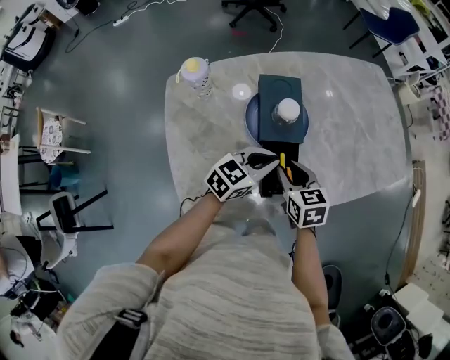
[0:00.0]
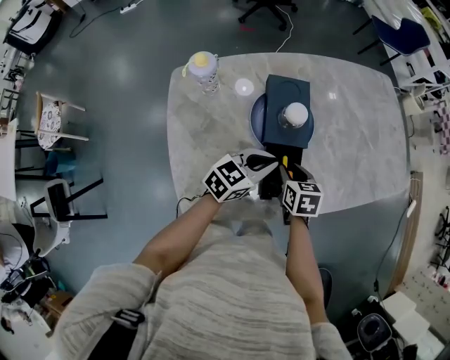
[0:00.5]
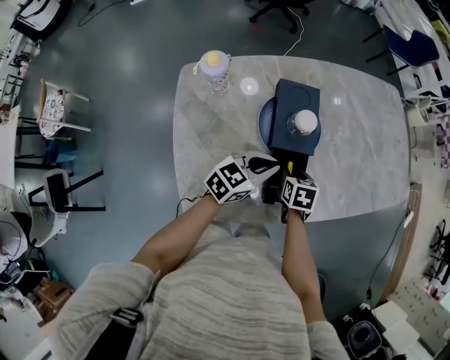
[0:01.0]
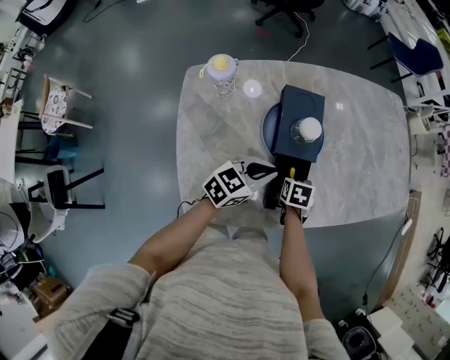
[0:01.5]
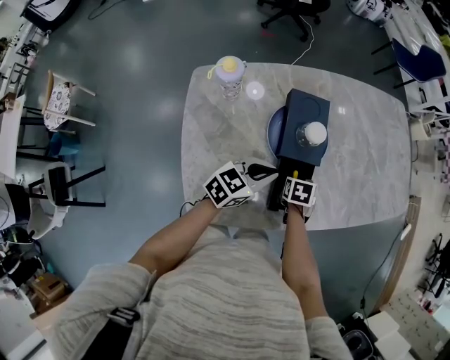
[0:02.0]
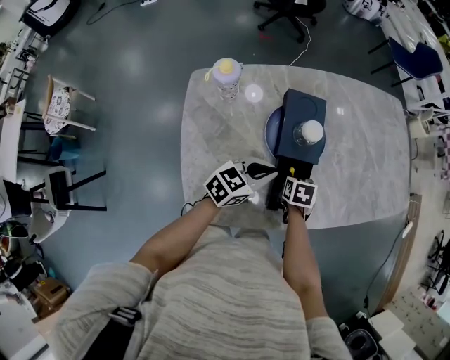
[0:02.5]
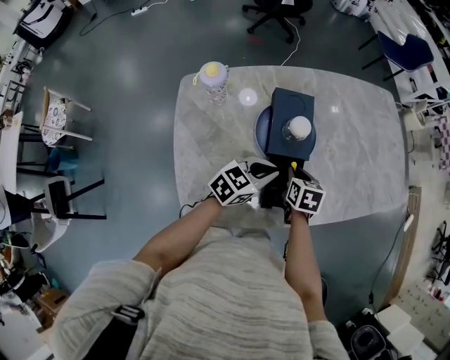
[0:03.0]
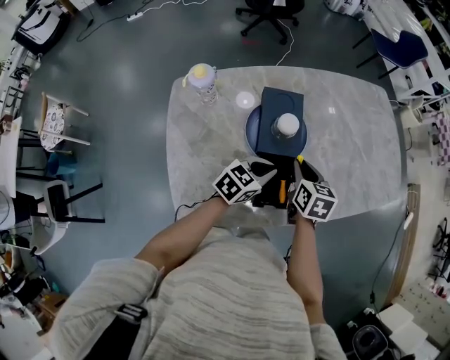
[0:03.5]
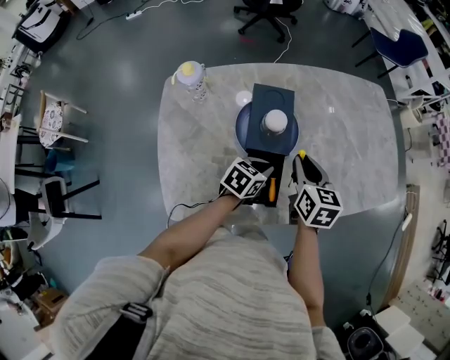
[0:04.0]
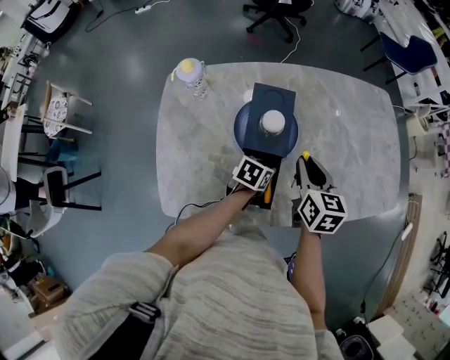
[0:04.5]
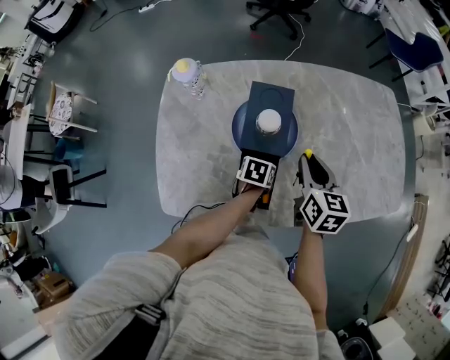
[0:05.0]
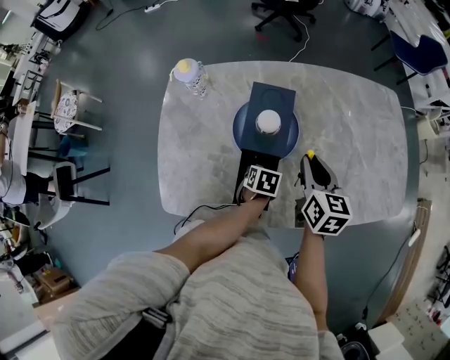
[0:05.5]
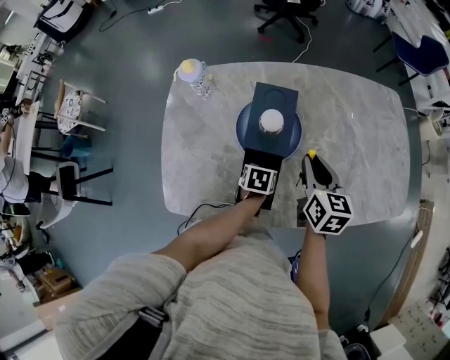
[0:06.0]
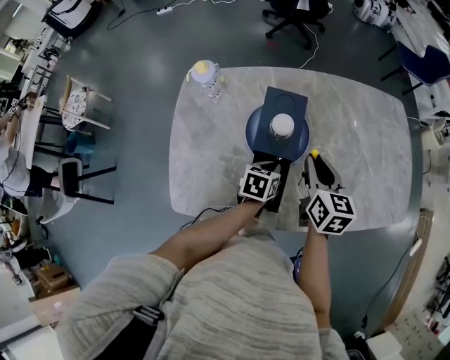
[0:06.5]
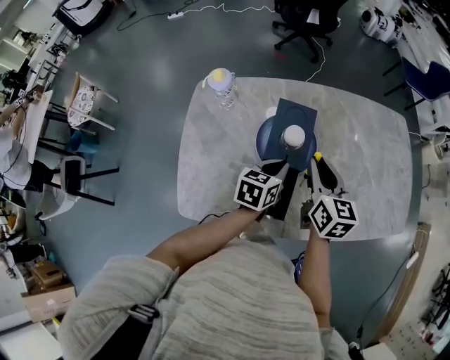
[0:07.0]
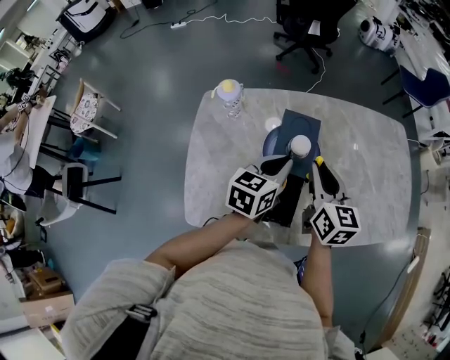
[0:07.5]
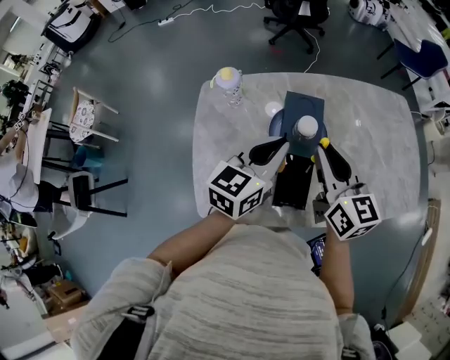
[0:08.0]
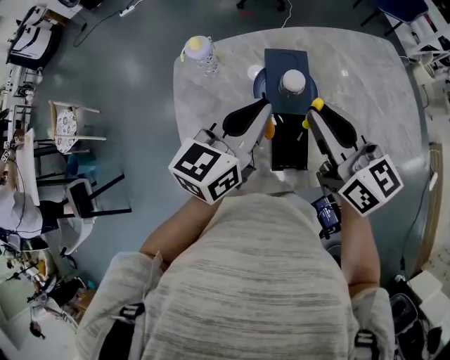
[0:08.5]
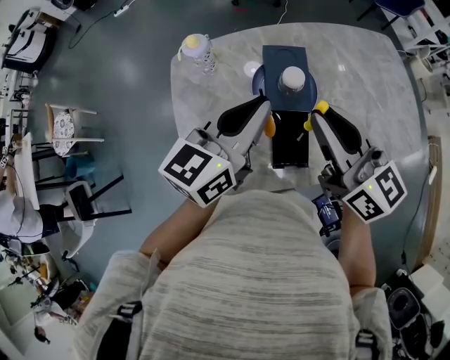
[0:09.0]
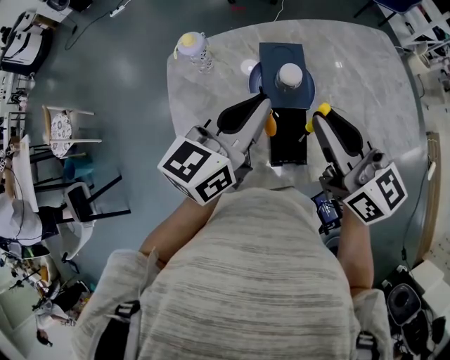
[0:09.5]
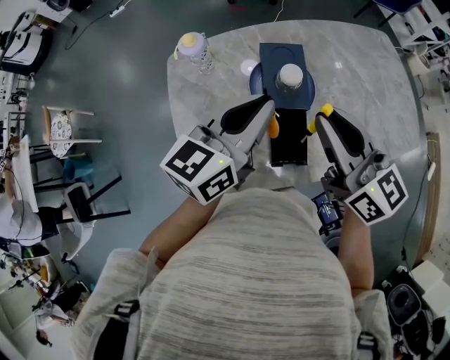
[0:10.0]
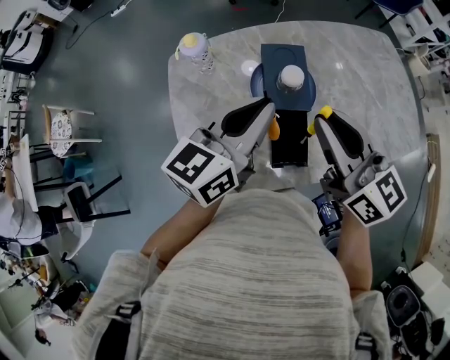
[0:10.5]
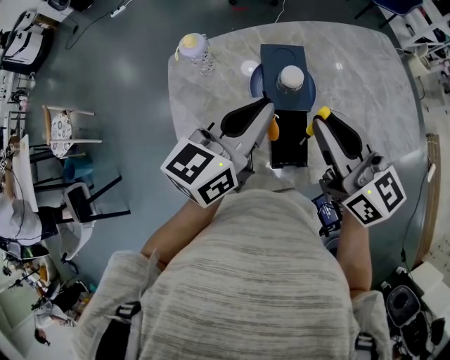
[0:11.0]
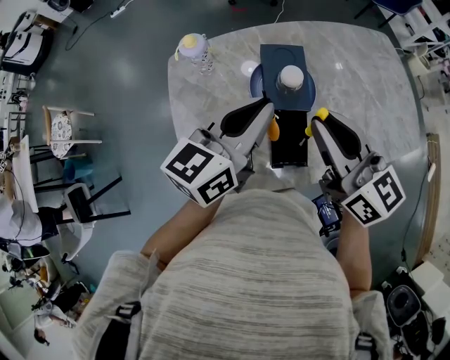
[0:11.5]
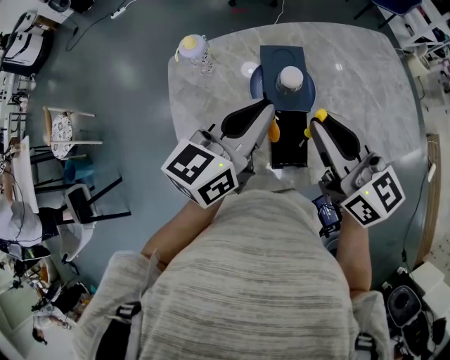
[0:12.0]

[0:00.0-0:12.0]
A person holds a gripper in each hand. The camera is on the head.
0:00.0 to 0:02.0: The right gripper heads downward, covering roughly 15 cm, and turns by about 30 degrees. Meanwhile the left gripper heads to the left, covering roughly 5 cm.
0:02.0 to 0:04.0: The right gripper travels upward by some 20 cm, and angles its fingers upward, by about 40 degrees. Meanwhile the left gripper travels to the right, downward and forward by some 10 cm, and changes its angle by about 20 degrees.
0:04.0 to 0:06.0: The left gripper moves downward, roughly 10 cm, turns by roughly 40 degrees, and opens, then closes again.
0:06.0 to 0:08.0: The right gripper shifts roughly 20 cm upward and to the left, and turns by some 20 degrees, while the left gripper heads upward, covering about 30 cm, and points its fingers some 50 degrees further upward.
0:08.0 to 0:10.0: The right gripper changes place by about 5 cm.
0:10.0 to 0:12.0: The two grippers keep their place.

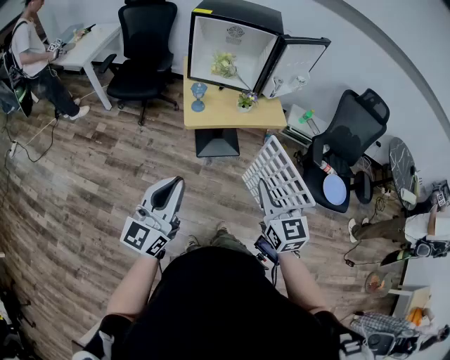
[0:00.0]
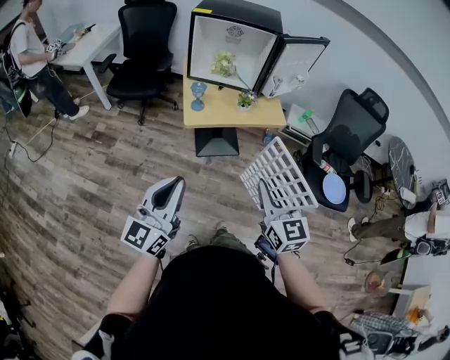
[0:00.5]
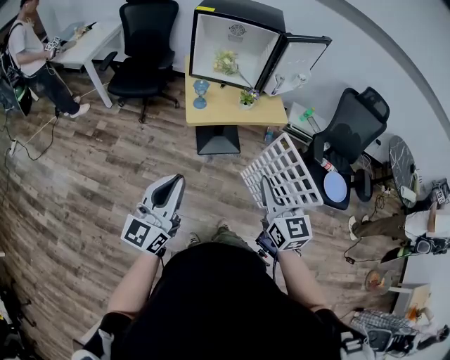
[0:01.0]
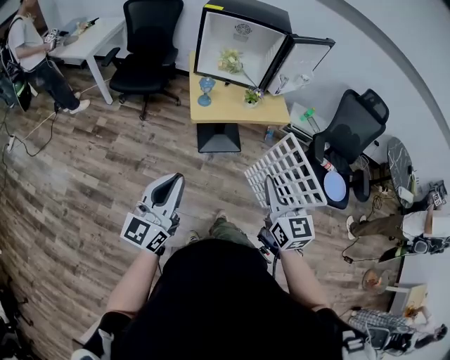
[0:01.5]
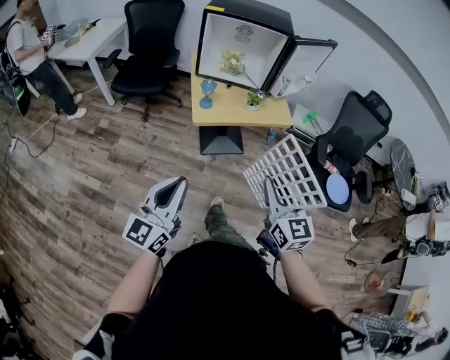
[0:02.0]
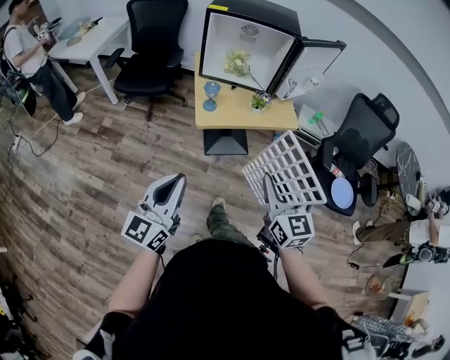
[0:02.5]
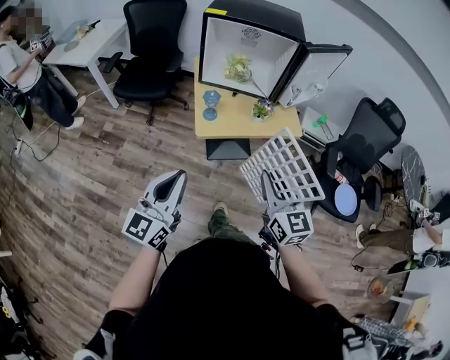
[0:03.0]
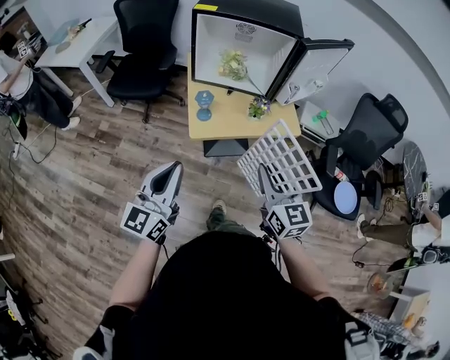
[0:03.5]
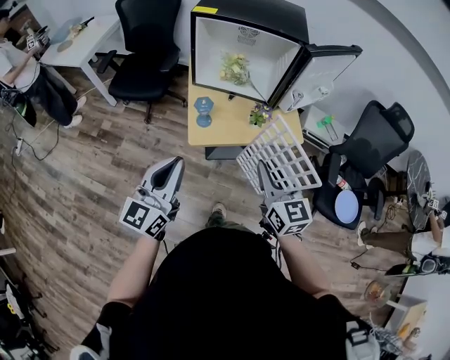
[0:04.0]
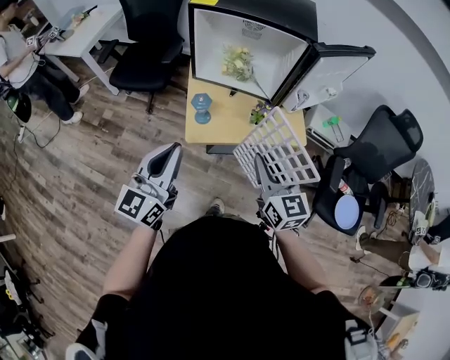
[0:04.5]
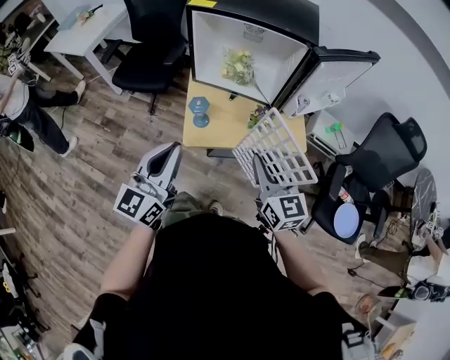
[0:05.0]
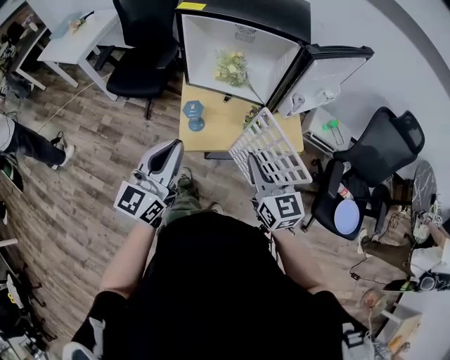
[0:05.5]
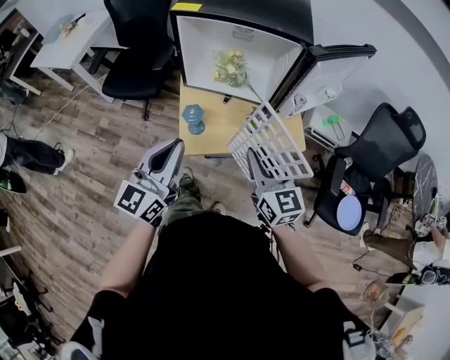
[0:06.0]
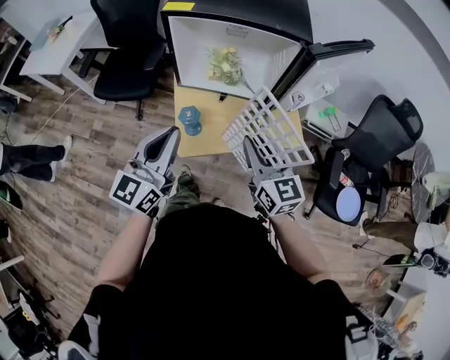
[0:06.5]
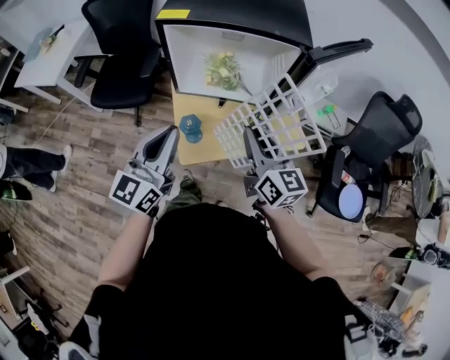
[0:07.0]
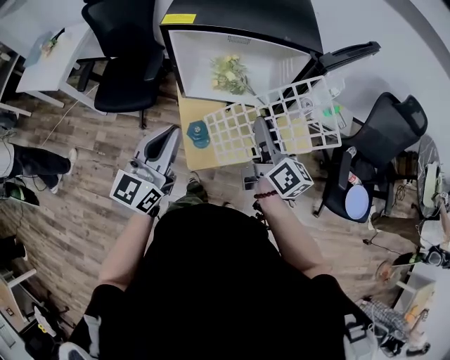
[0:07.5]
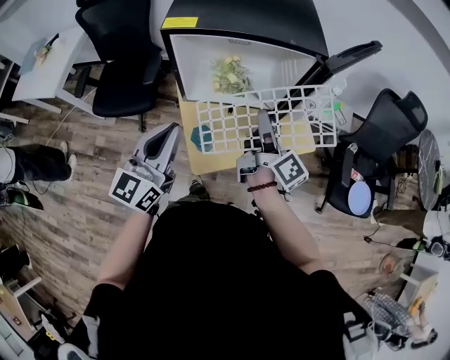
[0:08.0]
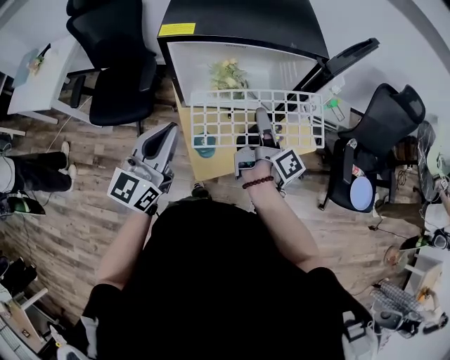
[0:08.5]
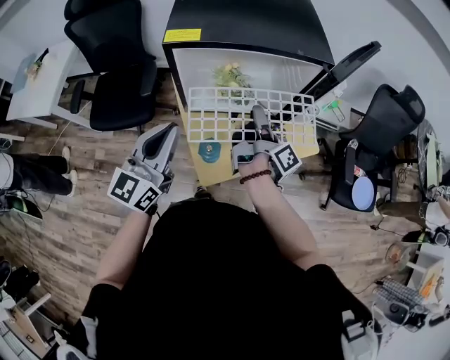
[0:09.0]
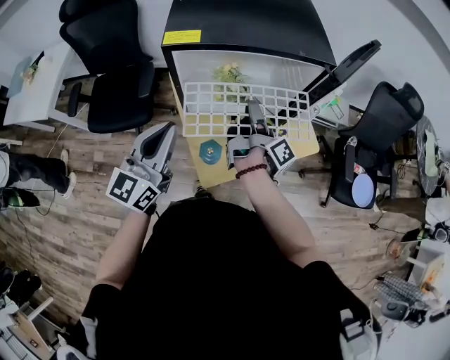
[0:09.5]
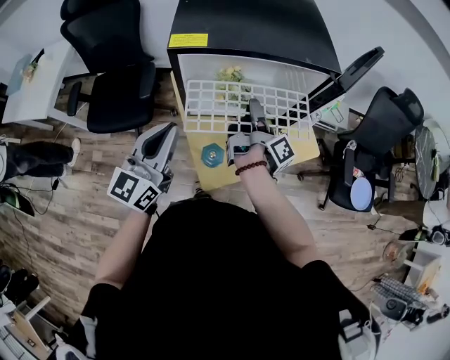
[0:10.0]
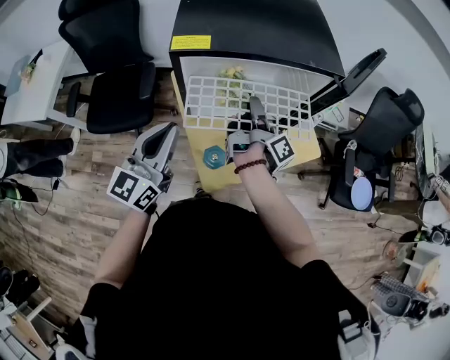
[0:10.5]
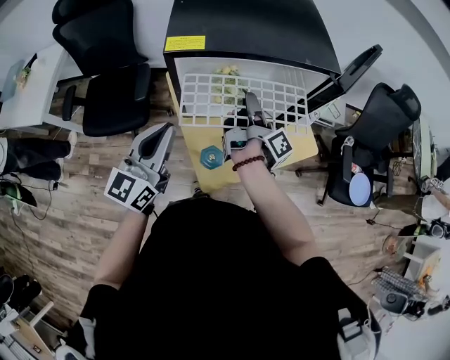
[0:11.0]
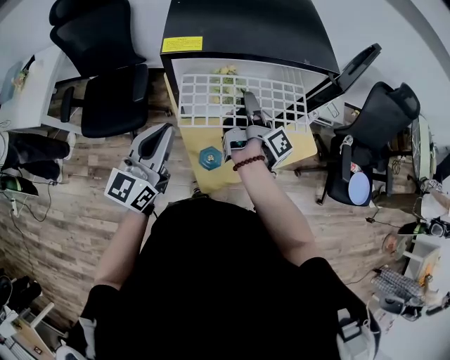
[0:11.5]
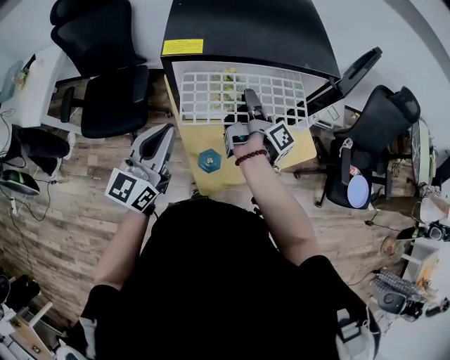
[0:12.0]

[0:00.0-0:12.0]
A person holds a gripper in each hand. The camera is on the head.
0:00.0 to 0:02.0: The grippers move only a little.
0:02.0 to 0:04.0: The two grippers go some 20 cm forward.
0:04.0 to 0:06.0: The two grippers go some 10 cm forward.
0:06.0 to 0:08.0: The left gripper shifts about 15 cm forward and to the left; the right gripper shifts roughly 15 cm forward, and twists approximately 60 degrees clockwise, seen from behind.
0:08.0 to 0:10.0: The left gripper is displaced to the left and forward by some 10 cm, while the right gripper travels forward, to the left and downward by about 10 cm, and rotates about 30 degrees.
0:10.0 to 0:12.0: The grippers make only small movements.

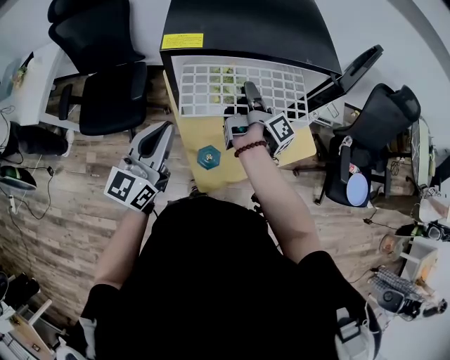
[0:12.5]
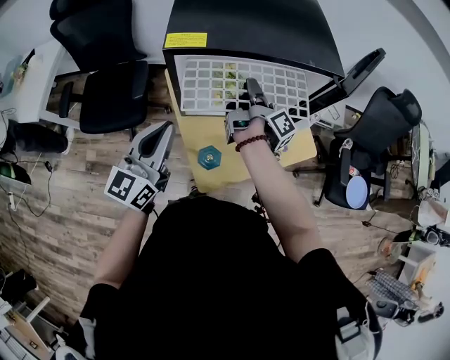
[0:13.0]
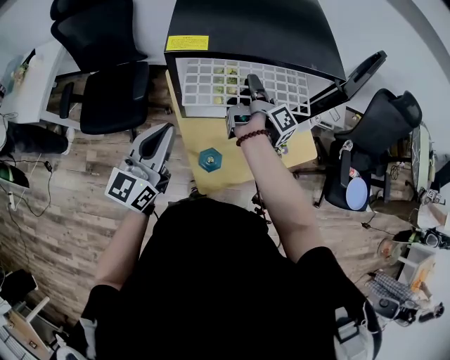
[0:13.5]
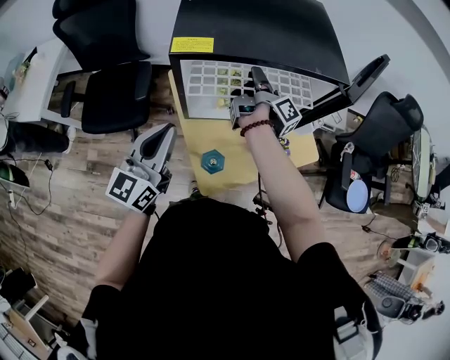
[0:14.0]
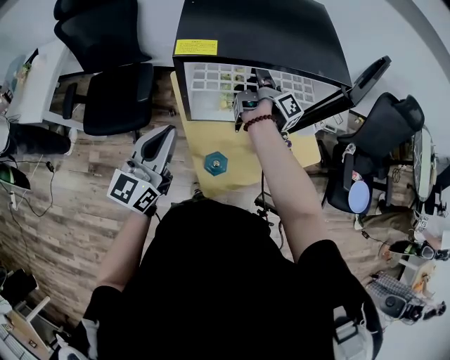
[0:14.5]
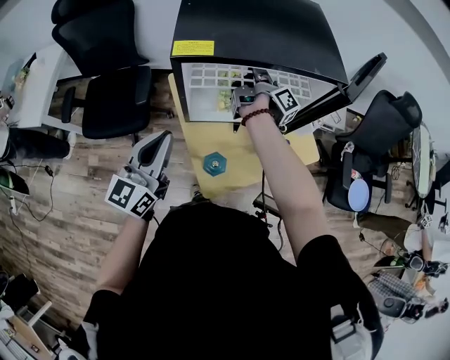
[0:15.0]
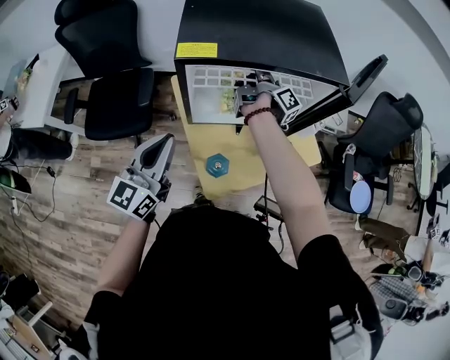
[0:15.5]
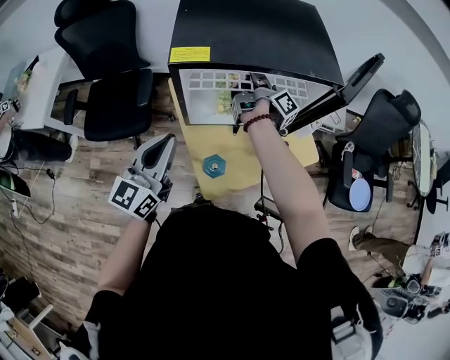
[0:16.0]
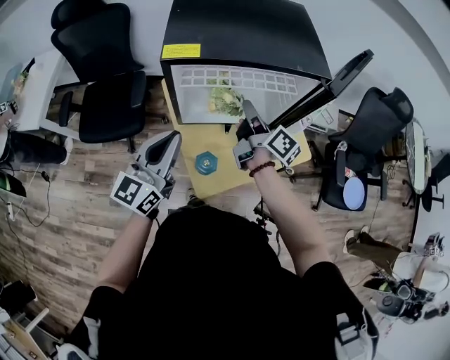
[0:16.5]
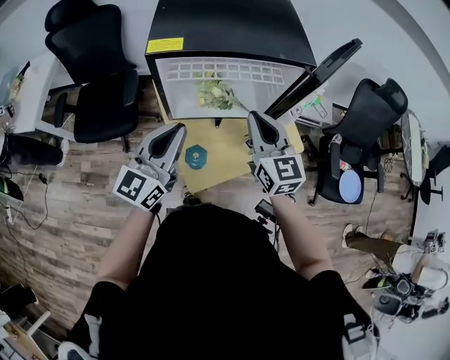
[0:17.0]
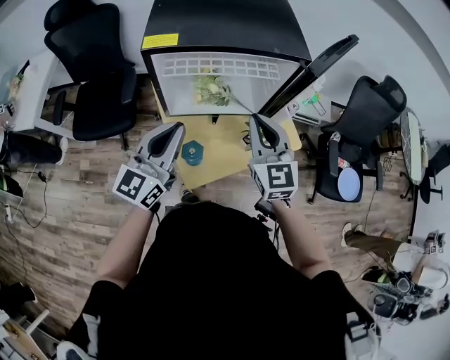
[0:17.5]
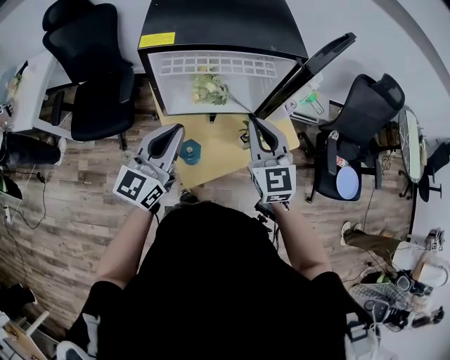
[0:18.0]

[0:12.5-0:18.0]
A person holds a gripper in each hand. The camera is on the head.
0:12.5 to 0:14.5: The right gripper is displaced forward by approximately 10 cm.
0:14.5 to 0:16.0: The grippers stay close to where they were, moving slightly.
0:16.0 to 0:18.0: The right gripper travels backward by approximately 25 cm, and rotates around the line of its fingers by approximately 110 degrees, counterclockwise from behind. Meanwhile the left gripper shifts some 10 cm to the right.
